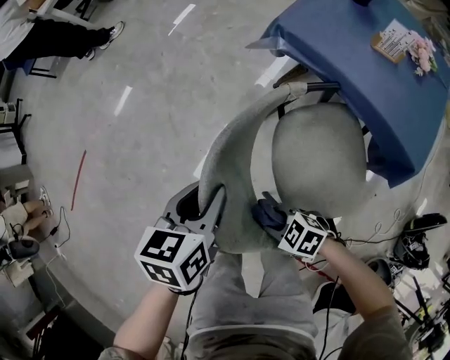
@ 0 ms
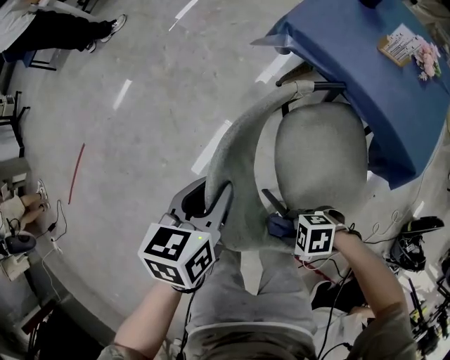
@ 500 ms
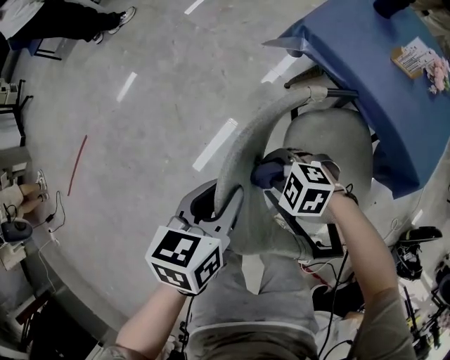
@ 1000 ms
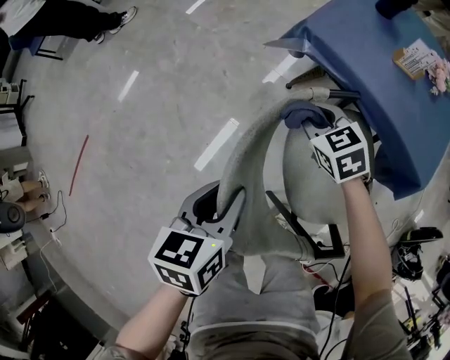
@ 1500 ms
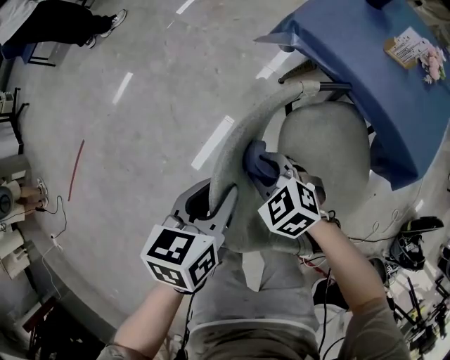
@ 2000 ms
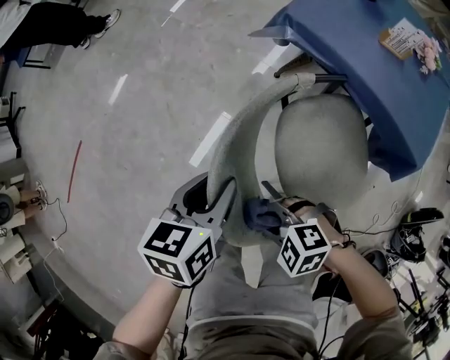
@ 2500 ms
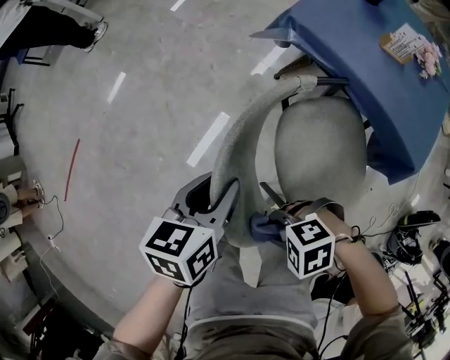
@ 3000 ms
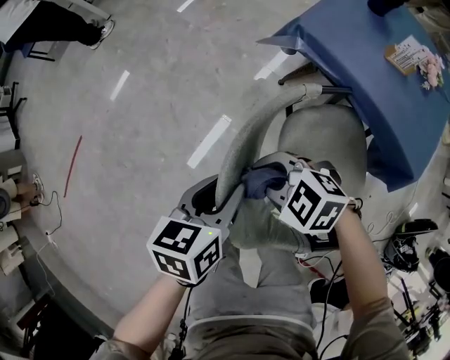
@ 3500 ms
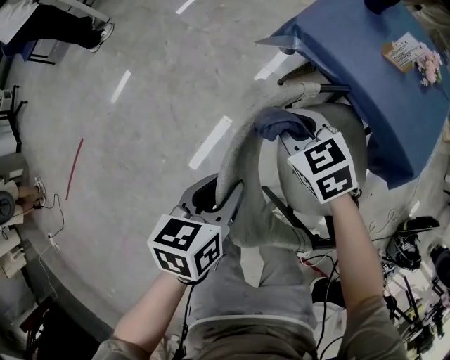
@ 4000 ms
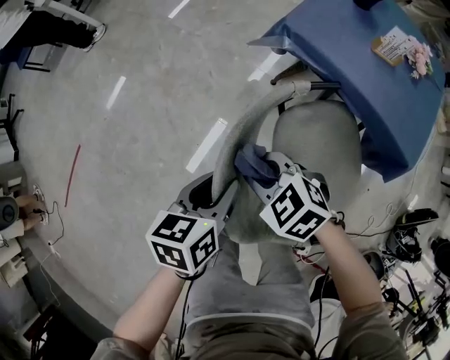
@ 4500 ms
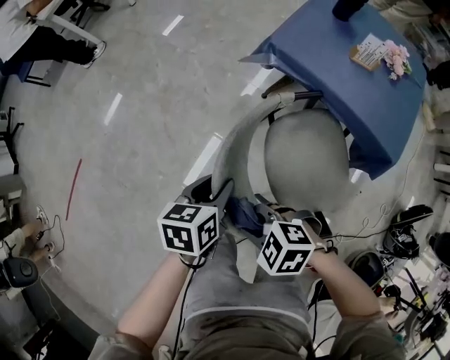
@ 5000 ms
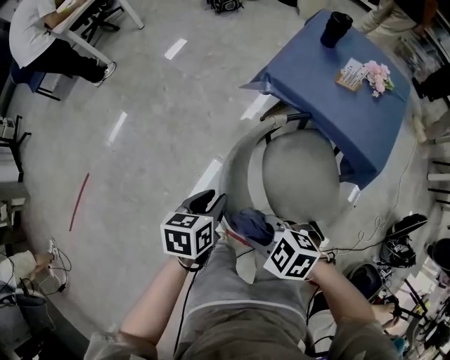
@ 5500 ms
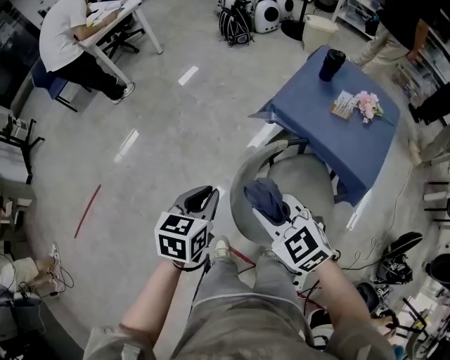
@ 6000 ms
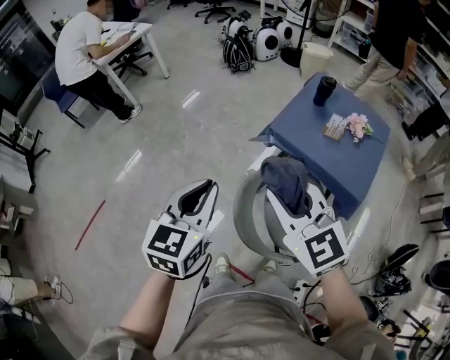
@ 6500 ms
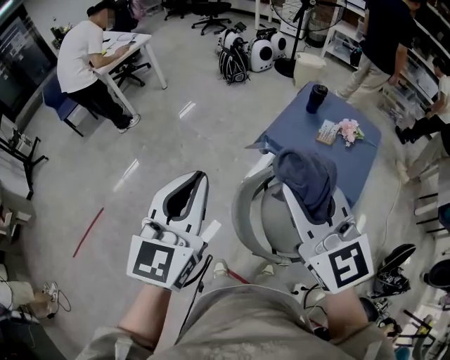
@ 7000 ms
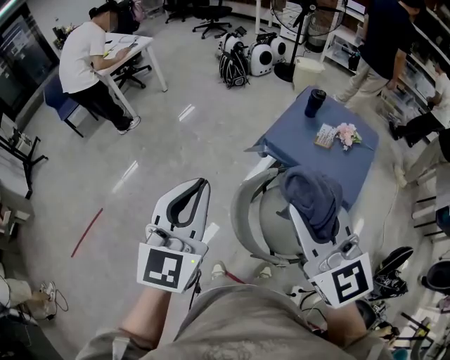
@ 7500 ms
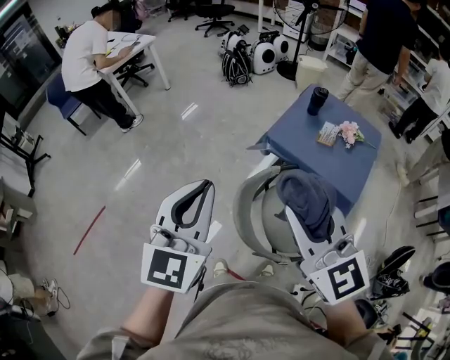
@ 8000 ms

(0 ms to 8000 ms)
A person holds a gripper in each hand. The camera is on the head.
0 ms - 2000 ms: The right gripper swivels roughly 30 degrees.
2000 ms - 4000 ms: The right gripper moves some 15 cm.
4000 ms - 6000 ms: The grippers both shift upward by about 20 cm.
6000 ms - 8000 ms: The grippers both shift upward by some 25 cm. The right gripper changes its angle by approximately 40 degrees. Meanwhile the left gripper tilts its fingers approximately 30 degrees upward.

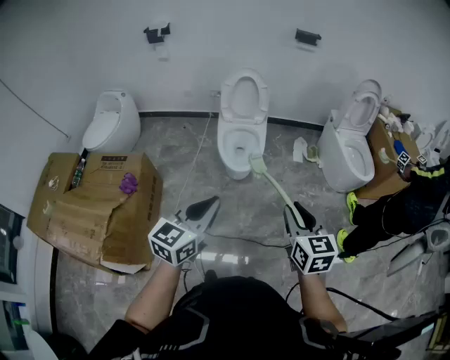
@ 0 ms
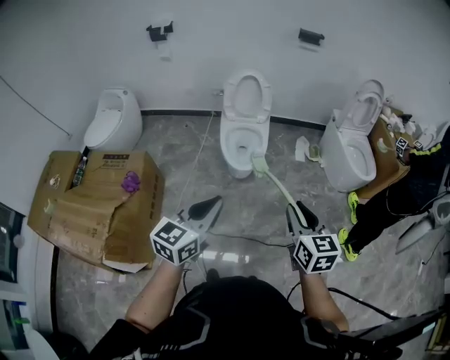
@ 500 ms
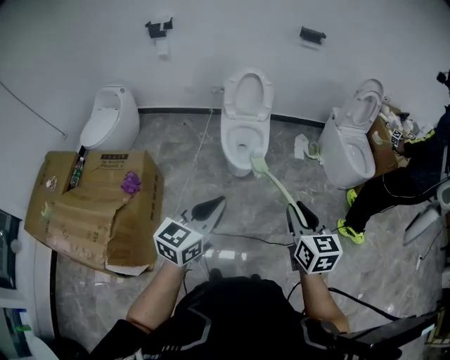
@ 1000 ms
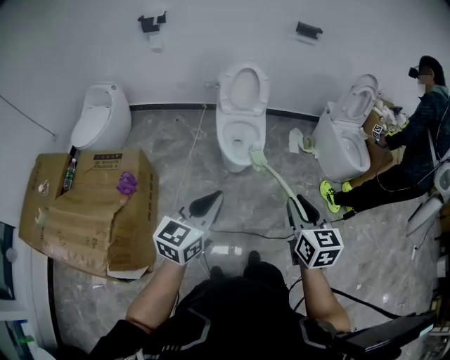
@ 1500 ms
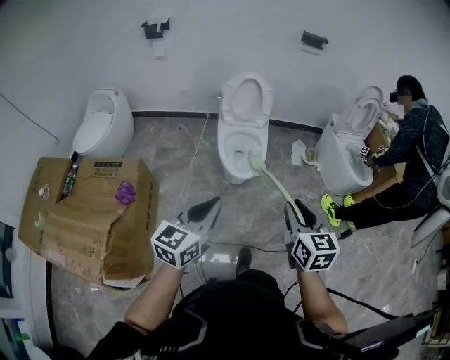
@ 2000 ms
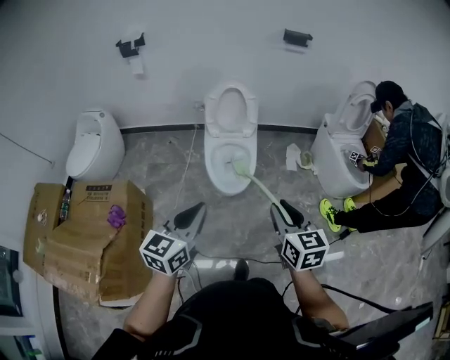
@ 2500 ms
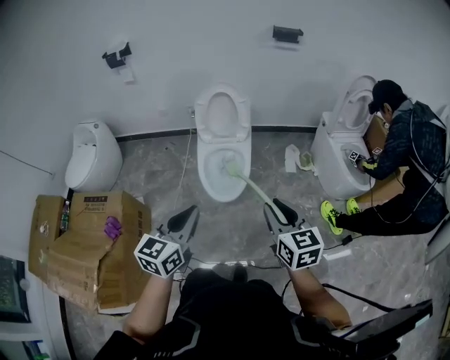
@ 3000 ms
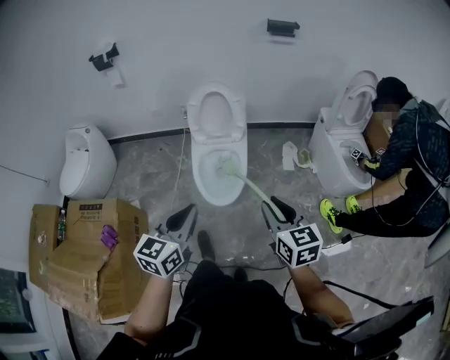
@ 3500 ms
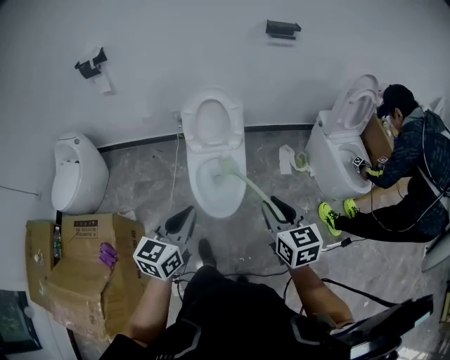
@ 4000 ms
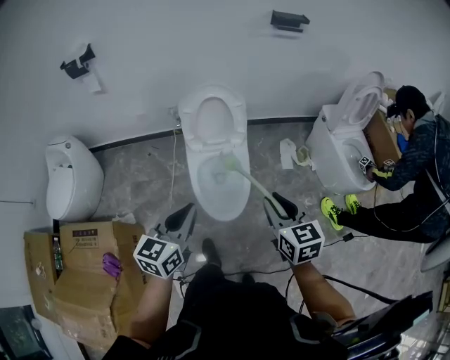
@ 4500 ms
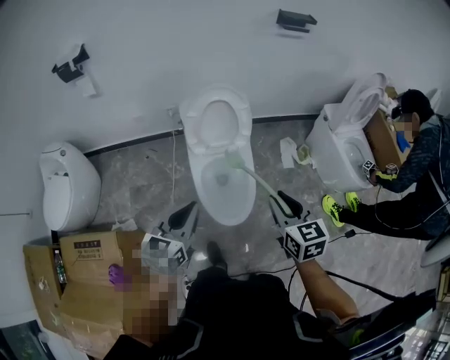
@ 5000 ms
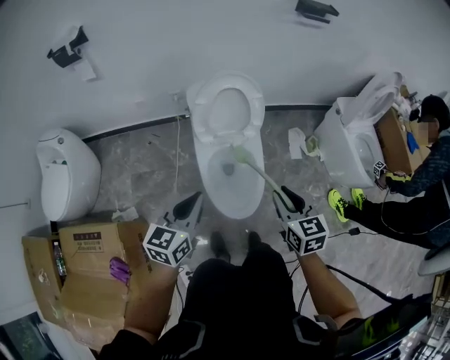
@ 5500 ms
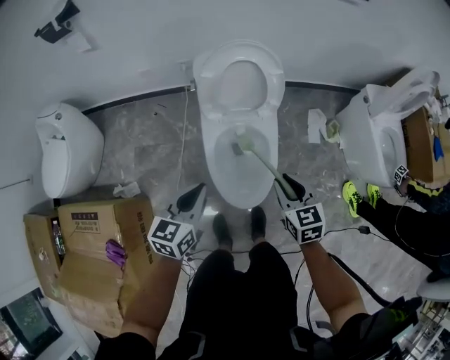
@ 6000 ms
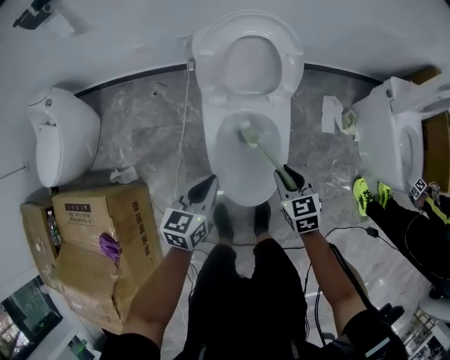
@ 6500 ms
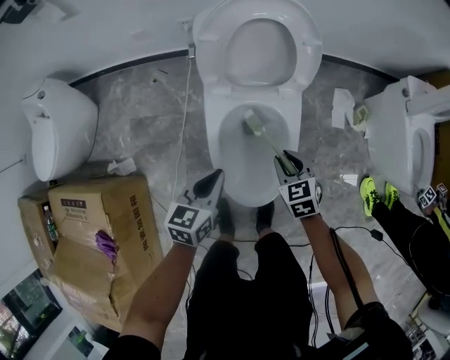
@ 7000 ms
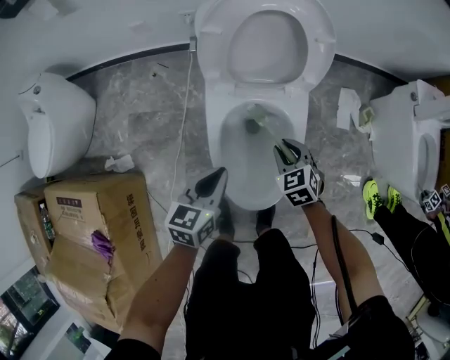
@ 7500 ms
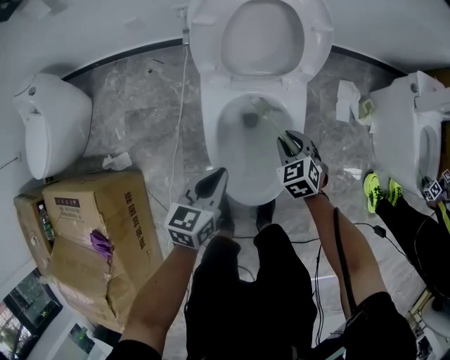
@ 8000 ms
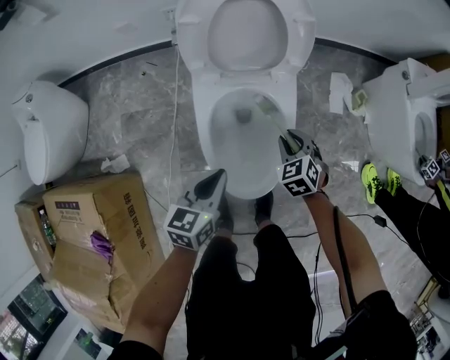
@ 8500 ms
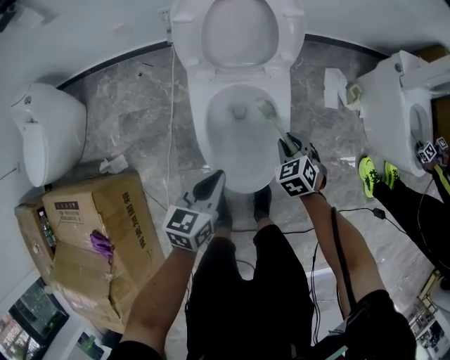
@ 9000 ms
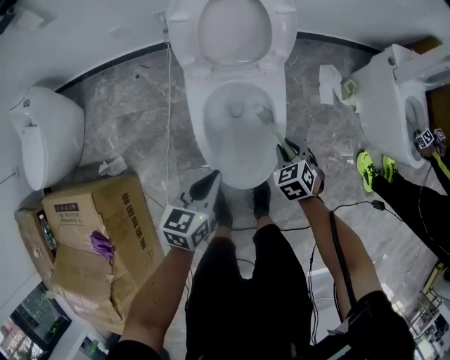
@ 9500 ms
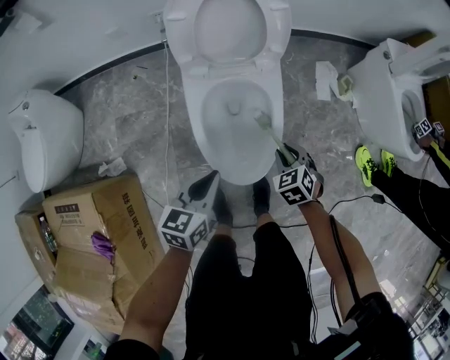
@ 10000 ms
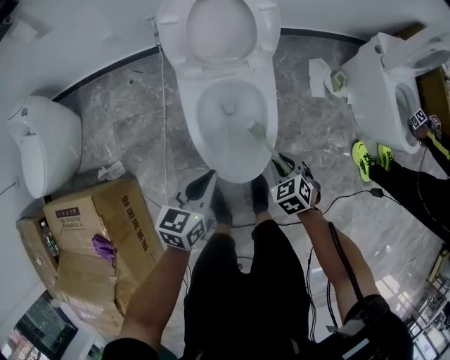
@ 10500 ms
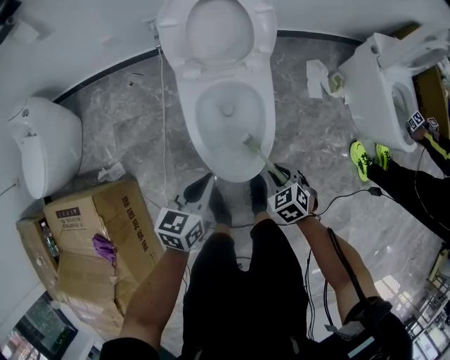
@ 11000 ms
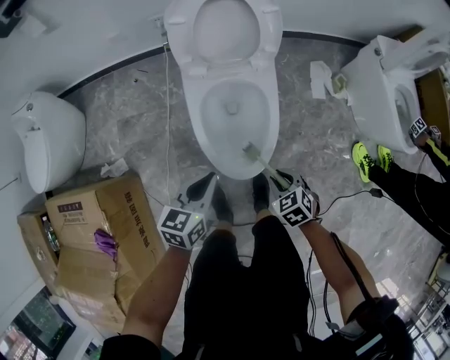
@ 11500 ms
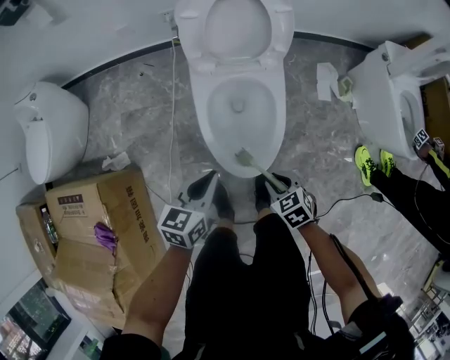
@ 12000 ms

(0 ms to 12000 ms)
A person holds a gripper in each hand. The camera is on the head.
0 ms - 2000 ms: The grippers both shift to the left and forward by roughly 10 cm.
2000 ms - 4000 ms: The grippers both shift forward by some 30 cm.
4000 ms - 6000 ms: The left gripper shifts about 30 cm forward, downward and to the left. Meanwhile the right gripper moves downward, forward and to the left, approximately 30 cm.
6000 ms - 8000 ms: The left gripper moves downward, about 20 cm. Meanwhile the right gripper heads downward and forward, covering about 30 cm, and changes its angle by roughly 30 degrees.
8000 ms - 10000 ms: The right gripper moves backward and to the right, some 15 cm. Meanwhile the left gripper is displaced backward by some 5 cm.
10000 ms - 12000 ms: The right gripper moves backward, approximately 10 cm.

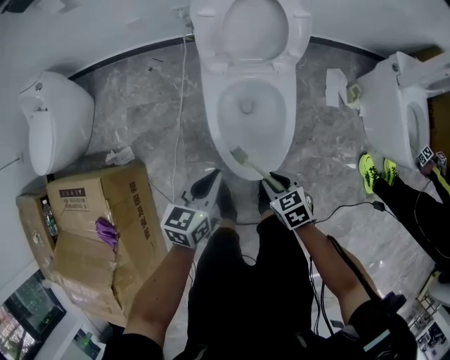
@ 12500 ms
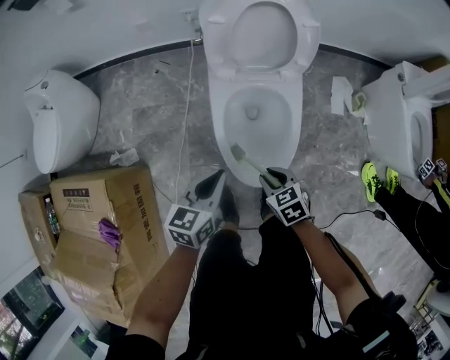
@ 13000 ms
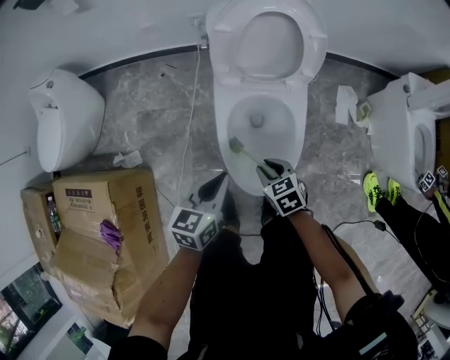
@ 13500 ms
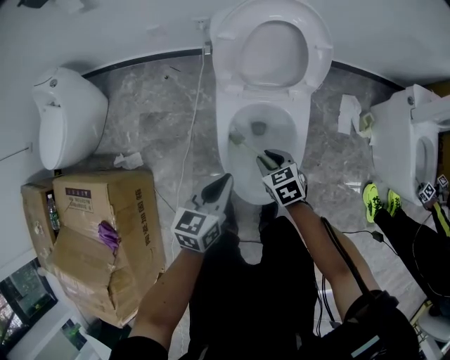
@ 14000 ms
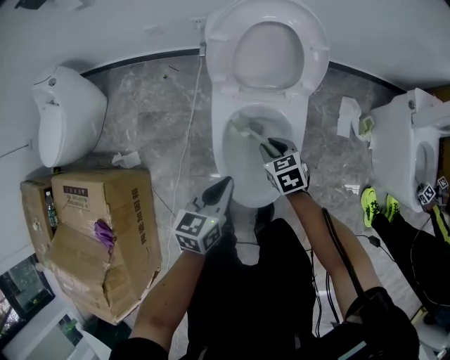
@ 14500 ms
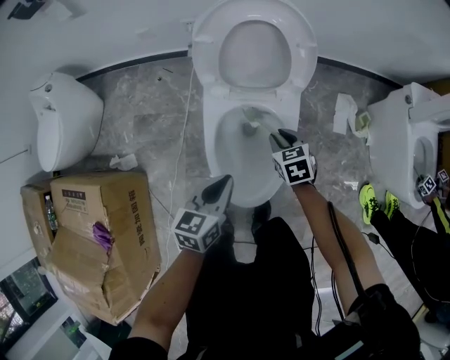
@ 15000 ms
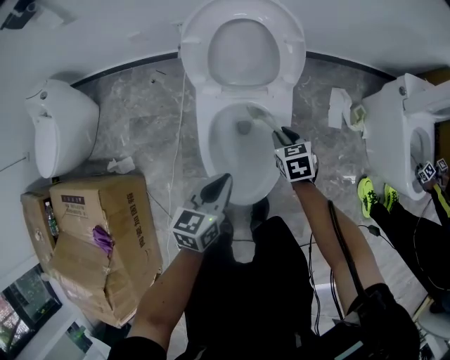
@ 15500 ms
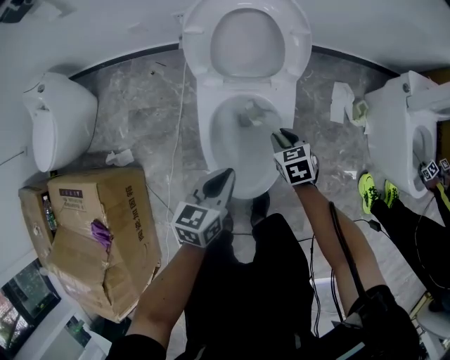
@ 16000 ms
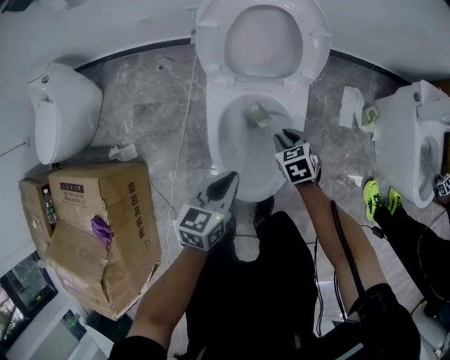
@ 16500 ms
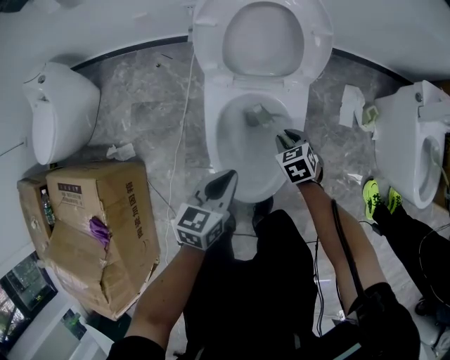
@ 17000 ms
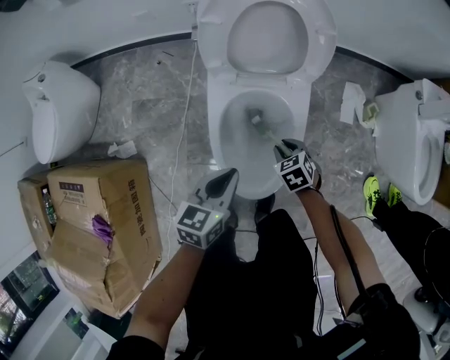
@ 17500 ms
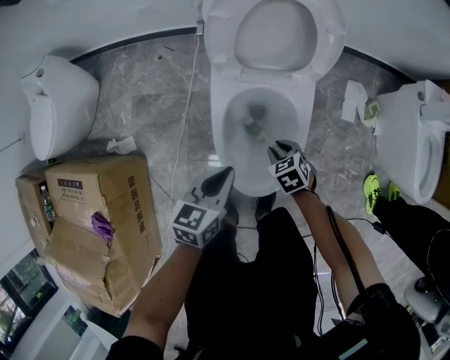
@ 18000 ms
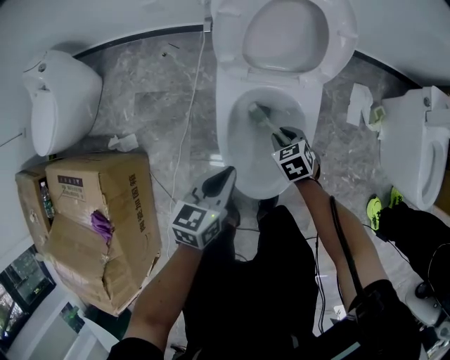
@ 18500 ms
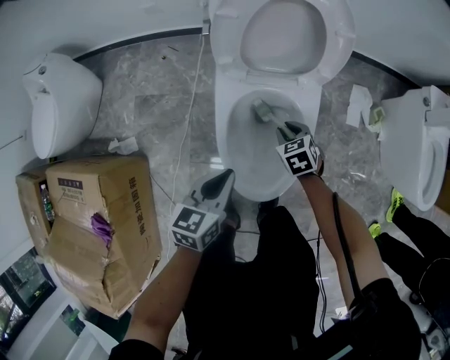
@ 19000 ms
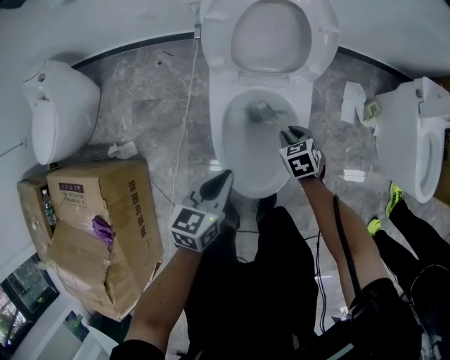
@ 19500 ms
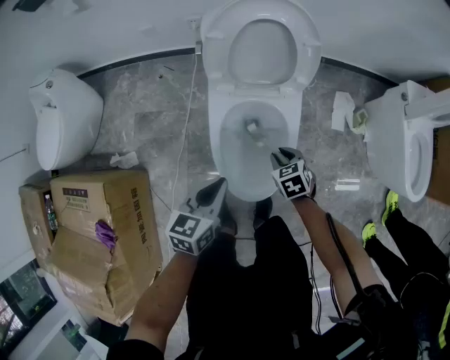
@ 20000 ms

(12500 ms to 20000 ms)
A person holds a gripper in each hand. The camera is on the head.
12500 ms - 14500 ms: The left gripper goes approximately 5 cm forward. Meanwhile the right gripper moves forward, approximately 20 cm.
14500 ms - 16500 ms: The right gripper heads to the right, covering some 5 cm.
16500 ms - 18000 ms: The right gripper moves backward, approximately 5 cm.
18000 ms - 20000 ms: The right gripper goes approximately 5 cm upward, and travels forward and back again, about 10 cm each way.
